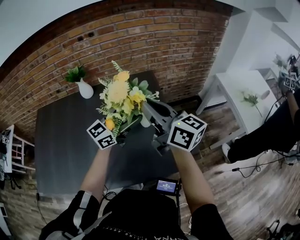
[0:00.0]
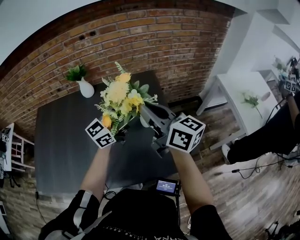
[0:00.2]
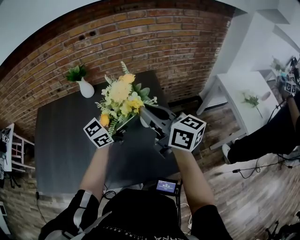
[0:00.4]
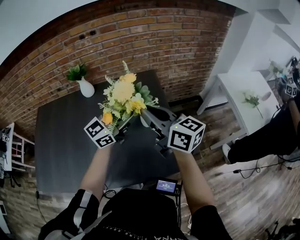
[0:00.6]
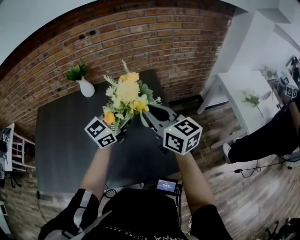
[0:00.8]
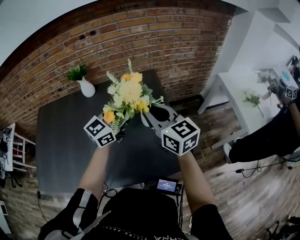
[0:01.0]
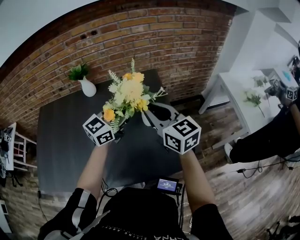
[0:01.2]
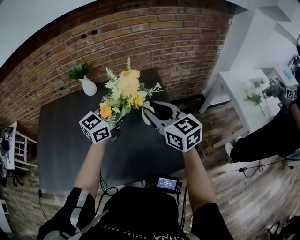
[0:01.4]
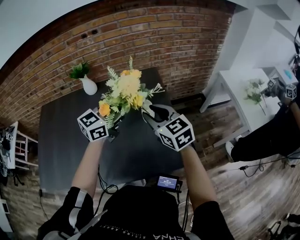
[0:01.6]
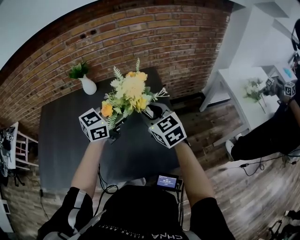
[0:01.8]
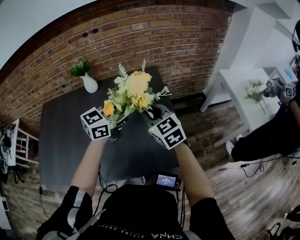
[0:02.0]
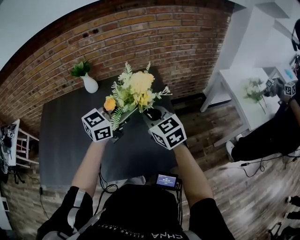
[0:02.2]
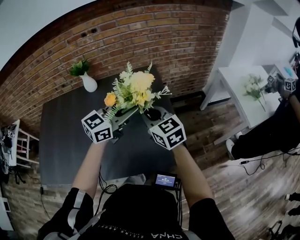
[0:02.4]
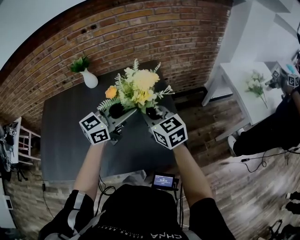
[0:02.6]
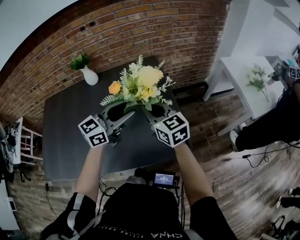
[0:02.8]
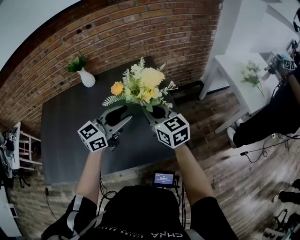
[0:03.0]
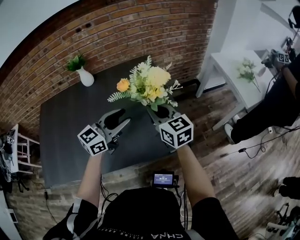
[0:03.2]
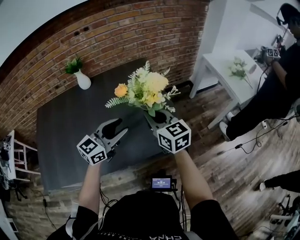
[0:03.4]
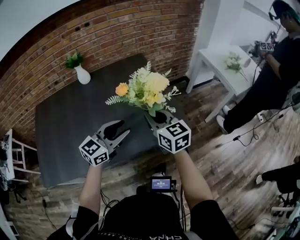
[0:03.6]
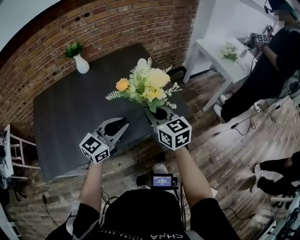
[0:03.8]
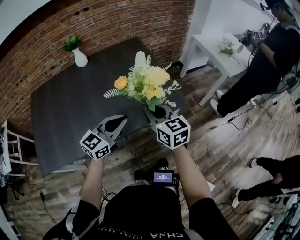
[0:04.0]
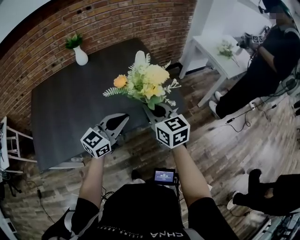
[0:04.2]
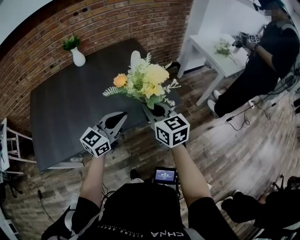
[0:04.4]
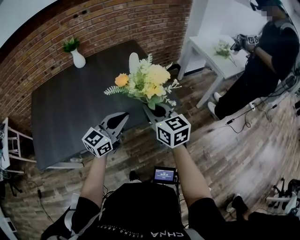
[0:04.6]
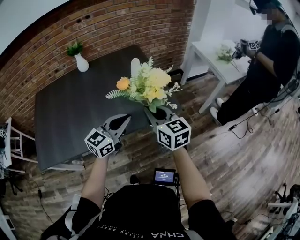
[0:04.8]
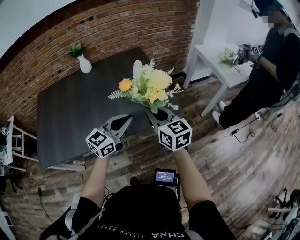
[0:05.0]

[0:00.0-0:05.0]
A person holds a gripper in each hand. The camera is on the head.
0:00.0 to 0:01.6: The left gripper closes up. The right gripper goes some 10 cm downward, and swivels approximately 40 degrees.
0:01.6 to 0:03.4: The grippers both shift backward by about 15 cm. The left gripper opens up.
0:03.4 to 0:05.0: The left gripper moves backward and to the right, some 15 cm, and closes. The right gripper shifts some 15 cm backward.

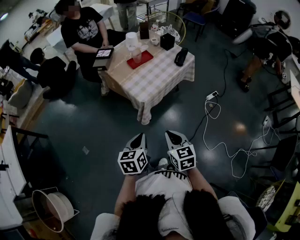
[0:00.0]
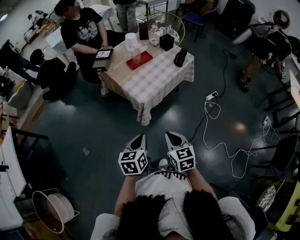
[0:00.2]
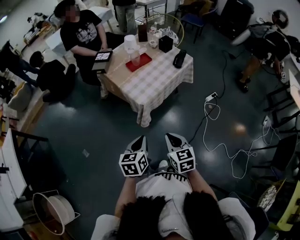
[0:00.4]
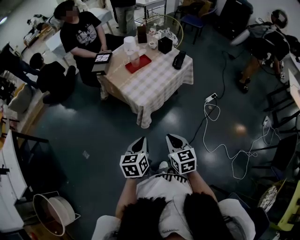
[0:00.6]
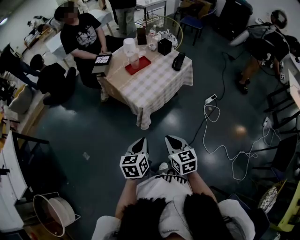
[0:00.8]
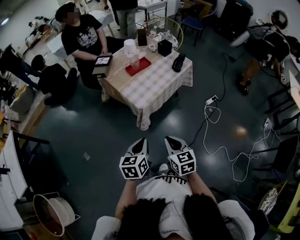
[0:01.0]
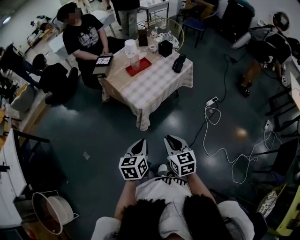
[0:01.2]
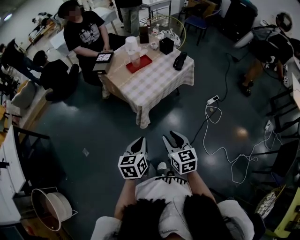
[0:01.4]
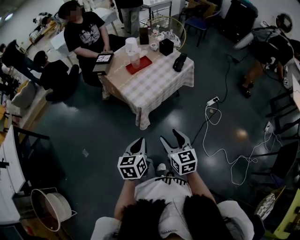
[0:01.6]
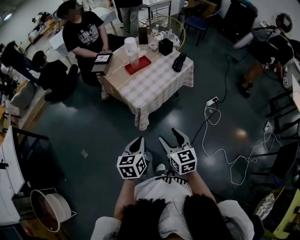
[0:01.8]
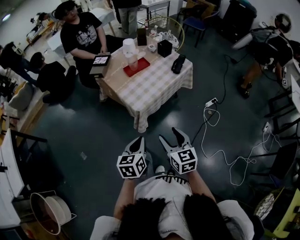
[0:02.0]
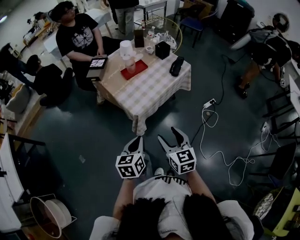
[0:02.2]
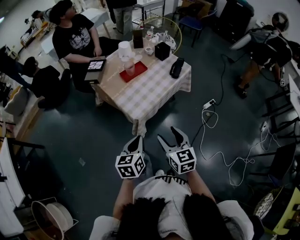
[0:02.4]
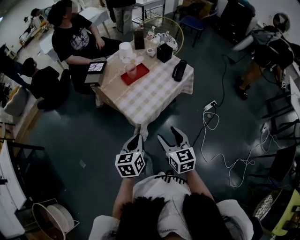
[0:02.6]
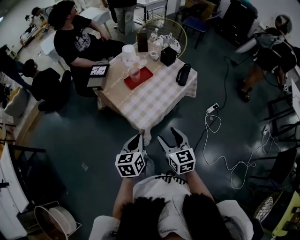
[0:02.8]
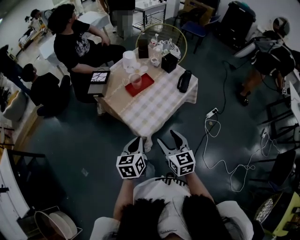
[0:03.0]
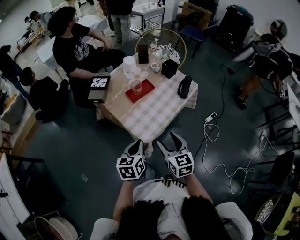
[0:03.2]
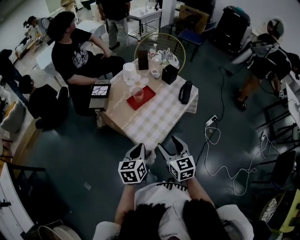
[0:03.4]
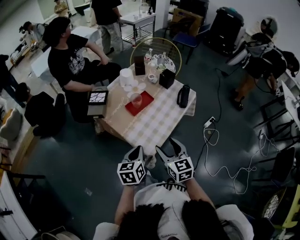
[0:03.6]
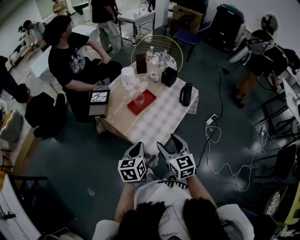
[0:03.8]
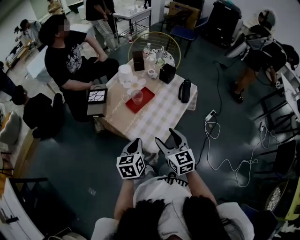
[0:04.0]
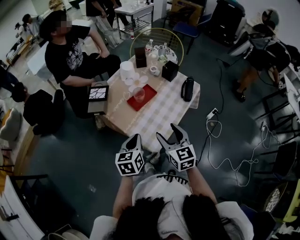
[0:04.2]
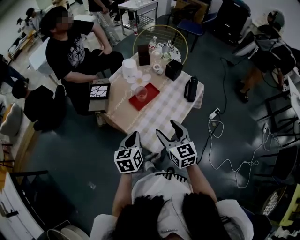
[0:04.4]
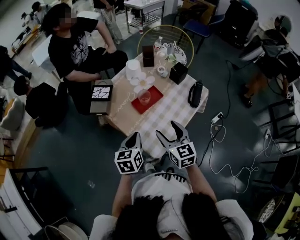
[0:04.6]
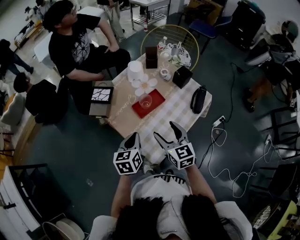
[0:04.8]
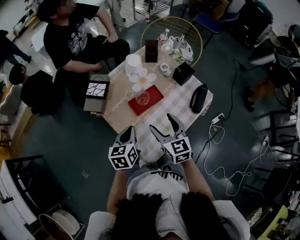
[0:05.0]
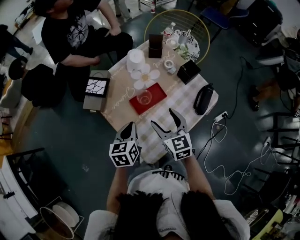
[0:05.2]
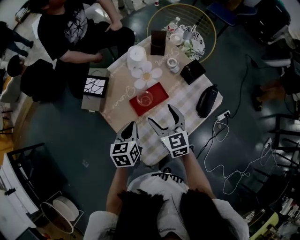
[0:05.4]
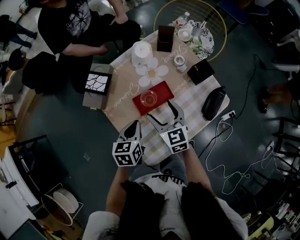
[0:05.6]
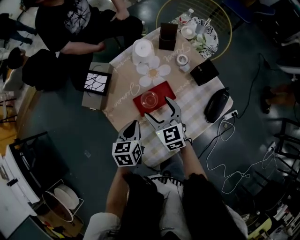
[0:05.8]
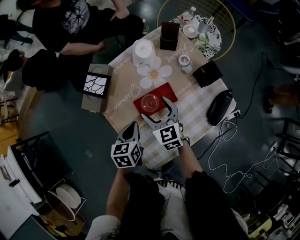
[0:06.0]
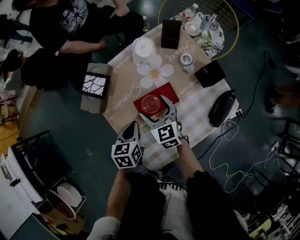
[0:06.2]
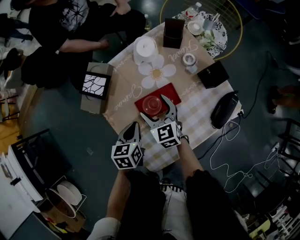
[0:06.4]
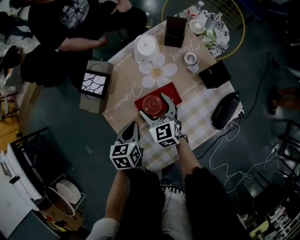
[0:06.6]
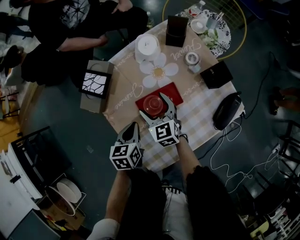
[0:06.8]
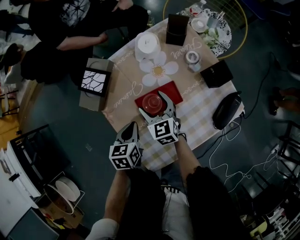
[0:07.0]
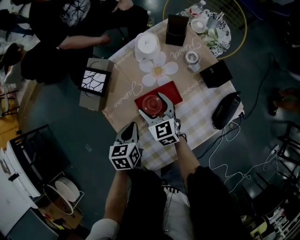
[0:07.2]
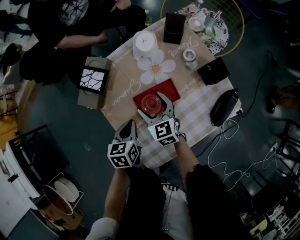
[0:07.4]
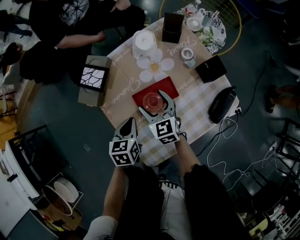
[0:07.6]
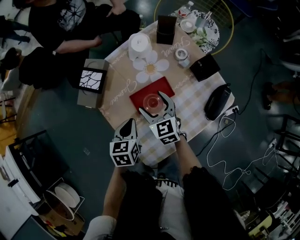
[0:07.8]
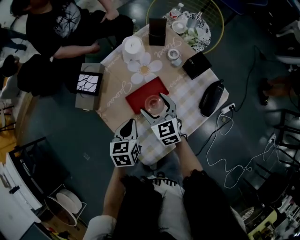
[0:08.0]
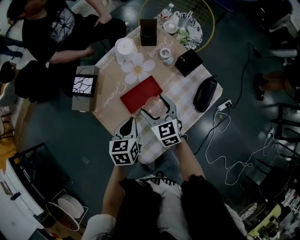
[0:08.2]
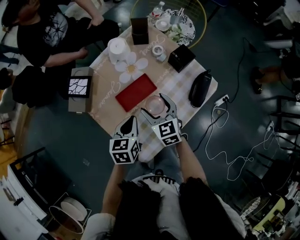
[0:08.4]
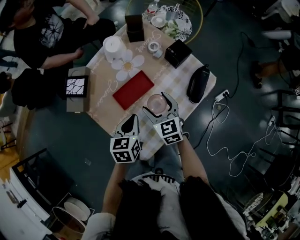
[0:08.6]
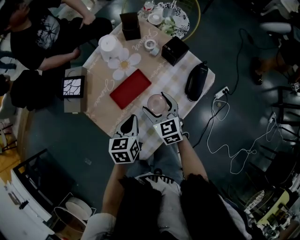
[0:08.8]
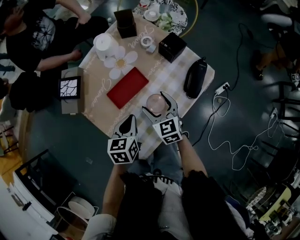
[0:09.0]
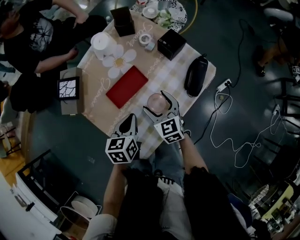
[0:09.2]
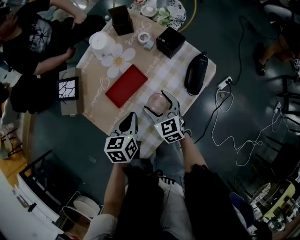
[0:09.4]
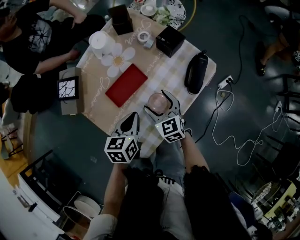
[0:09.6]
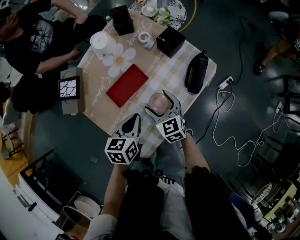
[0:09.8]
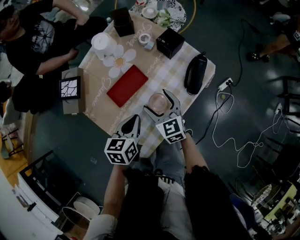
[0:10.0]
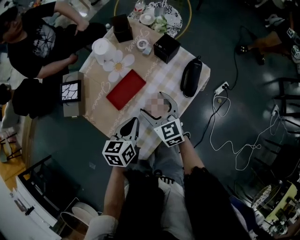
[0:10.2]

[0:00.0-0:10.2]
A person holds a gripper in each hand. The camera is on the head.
0:00.0 to 0:01.4: There are only small adjustments of the grippers.
0:01.4 to 0:03.0: Both grippers move forward, about 20 cm.
0:03.0 to 0:04.4: The two grippers go some 15 cm forward and to the left.
0:04.4 to 0:05.8: Both grippers move forward and downward, roughly 20 cm. The right gripper changes its angle by approximately 20 degrees.
0:05.8 to 0:07.2: The right gripper is displaced downward by roughly 5 cm.
0:07.2 to 0:08.8: The left gripper shifts about 10 cm to the right; the right gripper shifts roughly 15 cm to the right and backward.
0:08.8 to 0:10.2: The grippers stay close to where they were, moving slightly.

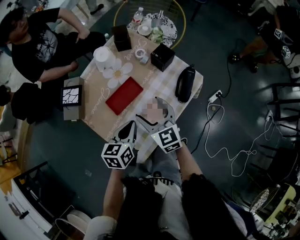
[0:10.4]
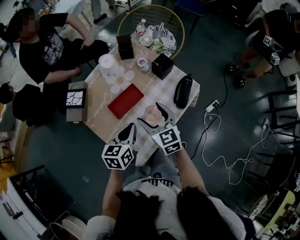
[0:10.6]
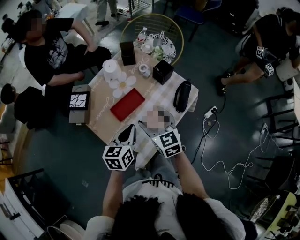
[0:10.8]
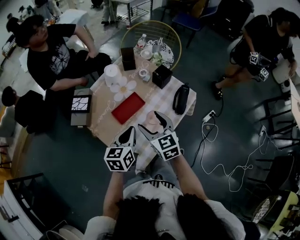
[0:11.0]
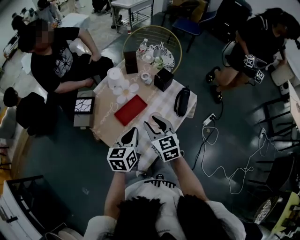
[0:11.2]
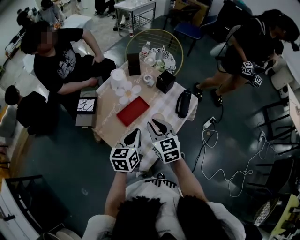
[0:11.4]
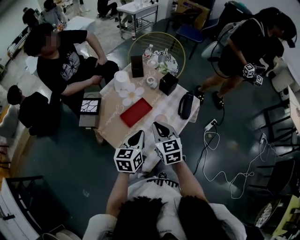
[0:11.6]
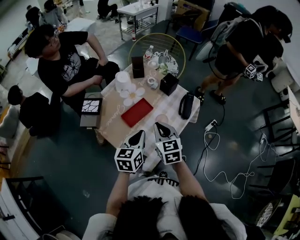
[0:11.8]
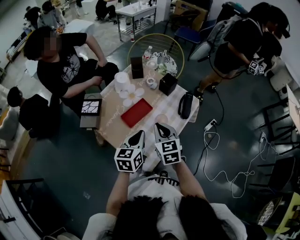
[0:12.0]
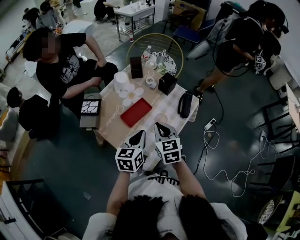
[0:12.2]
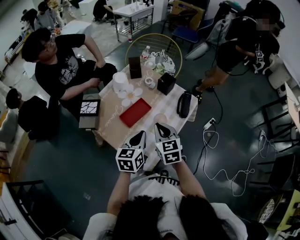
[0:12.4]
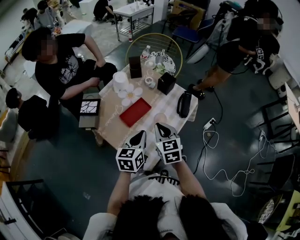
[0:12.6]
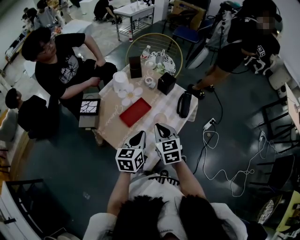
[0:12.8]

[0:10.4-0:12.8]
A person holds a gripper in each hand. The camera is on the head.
0:10.4 to 0:11.6: The left gripper moves upward, about 5 cm. The right gripper moves upward and backward, approximately 10 cm, and closes.
0:11.6 to 0:12.8: The grippers stay close to where they were, moving slightly.

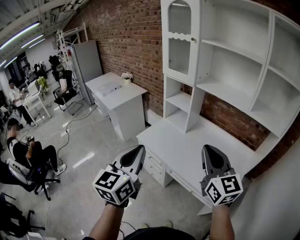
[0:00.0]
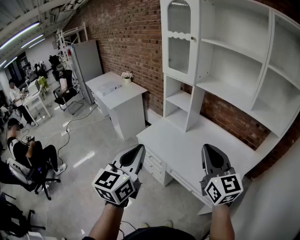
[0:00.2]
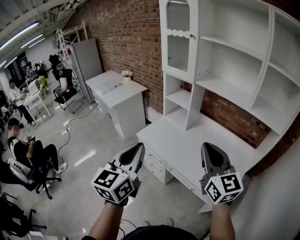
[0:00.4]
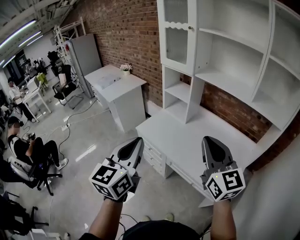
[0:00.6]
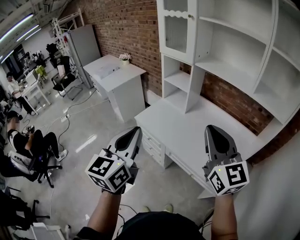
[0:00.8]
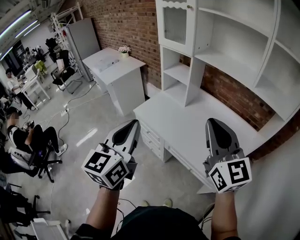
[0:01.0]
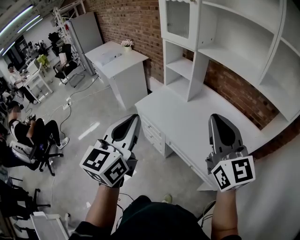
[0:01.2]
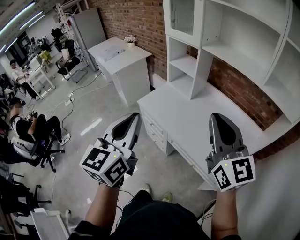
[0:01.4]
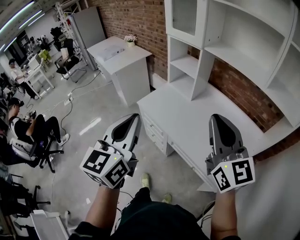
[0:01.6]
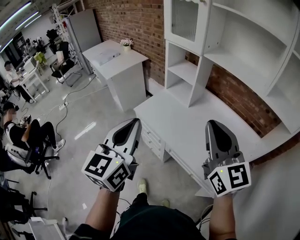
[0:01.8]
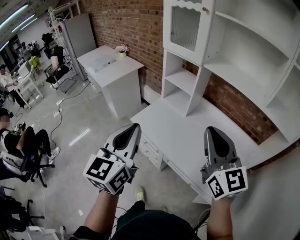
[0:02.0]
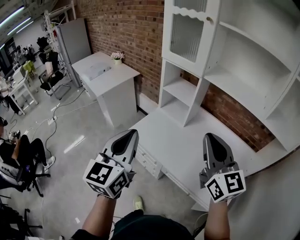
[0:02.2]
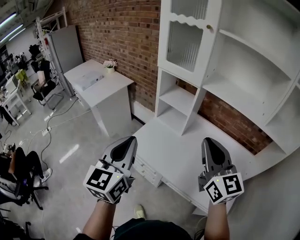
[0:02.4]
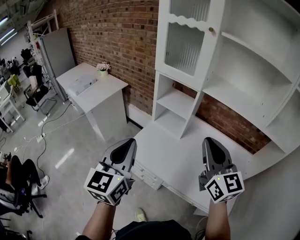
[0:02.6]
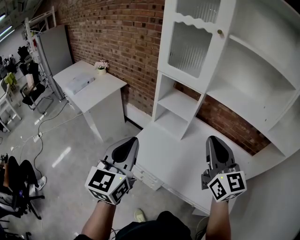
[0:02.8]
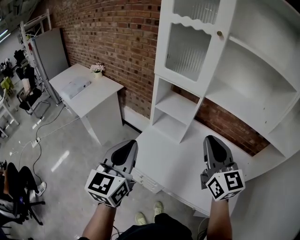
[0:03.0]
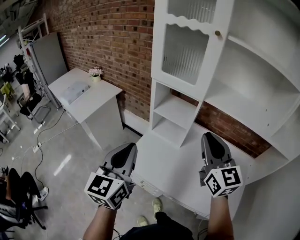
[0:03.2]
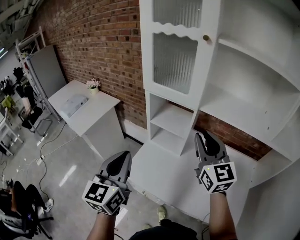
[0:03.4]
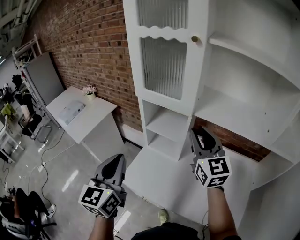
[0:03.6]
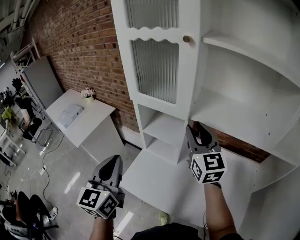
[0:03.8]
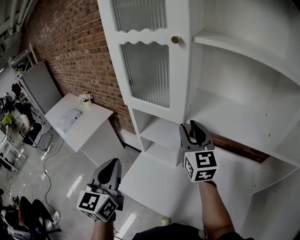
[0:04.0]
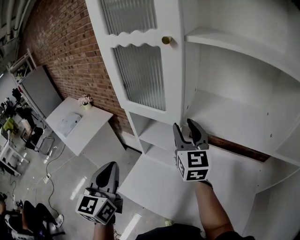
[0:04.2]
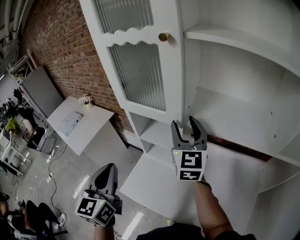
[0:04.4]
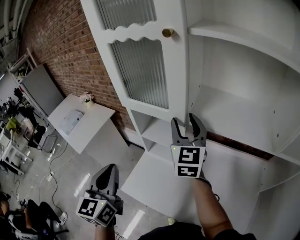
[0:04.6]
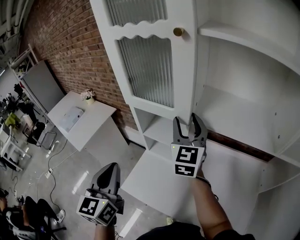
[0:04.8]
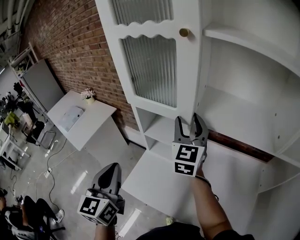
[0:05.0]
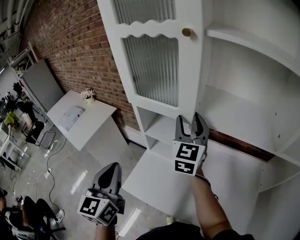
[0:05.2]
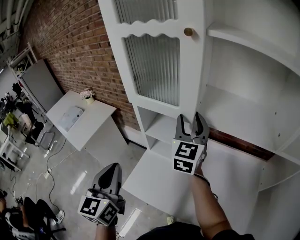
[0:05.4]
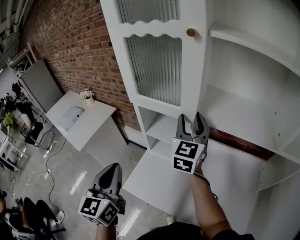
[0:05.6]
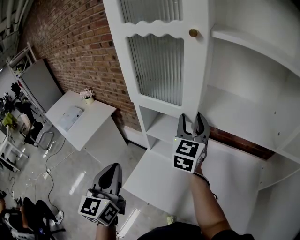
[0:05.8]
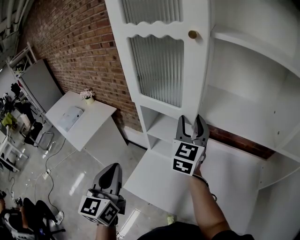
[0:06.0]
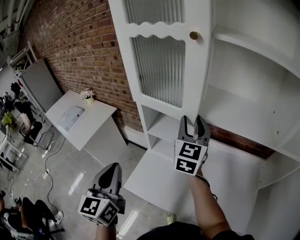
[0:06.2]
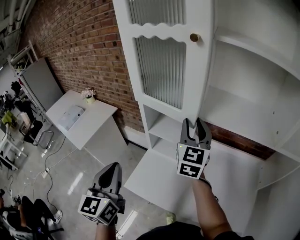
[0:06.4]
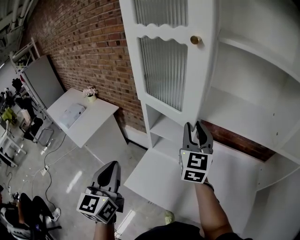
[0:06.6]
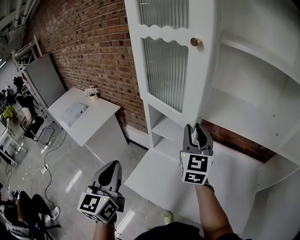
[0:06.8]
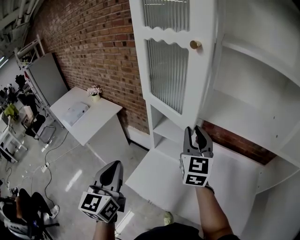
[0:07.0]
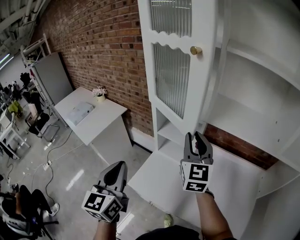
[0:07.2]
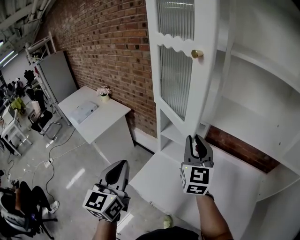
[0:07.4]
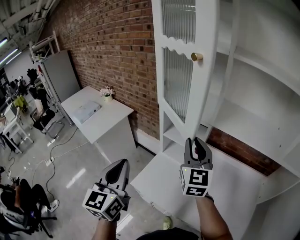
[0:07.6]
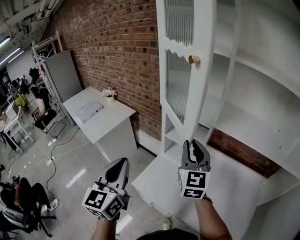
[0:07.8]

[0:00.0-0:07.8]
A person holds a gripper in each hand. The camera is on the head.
0:00.0 to 0:01.6: The grippers move only a little.
0:01.6 to 0:03.2: Both grippers travel together forward, some 30 cm.
0:03.2 to 0:04.6: The left gripper heads forward, covering roughly 10 cm. Meanwhile the right gripper is displaced forward by about 25 cm, and opens.
0:04.6 to 0:06.2: The grippers move only a little.
0:06.2 to 0:07.8: The right gripper heads backward and to the left, covering about 15 cm, and closes; the left gripper is displaced backward by some 5 cm.
